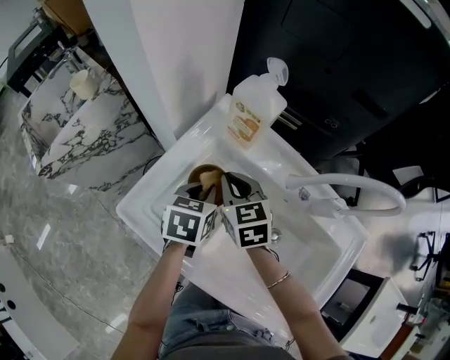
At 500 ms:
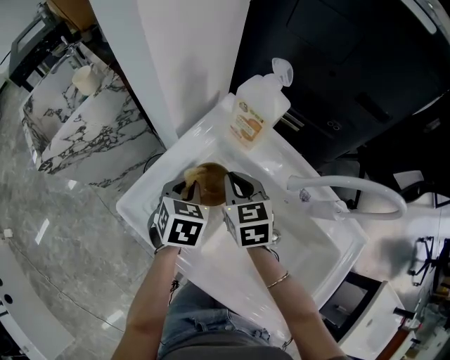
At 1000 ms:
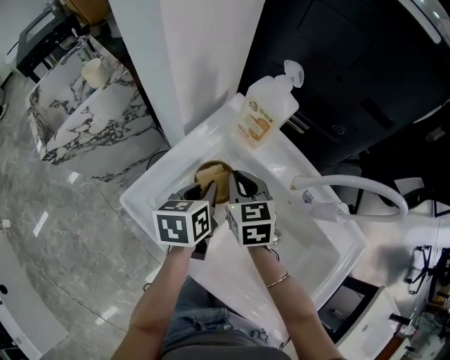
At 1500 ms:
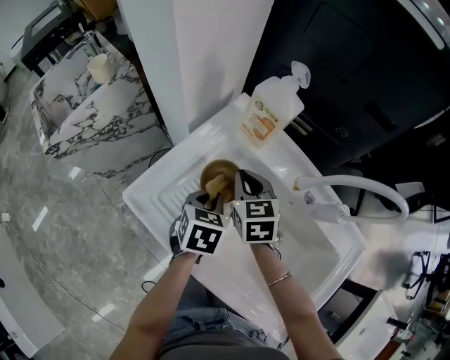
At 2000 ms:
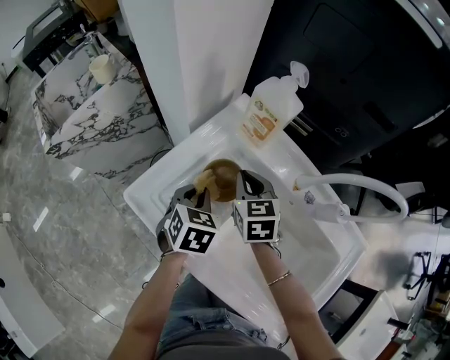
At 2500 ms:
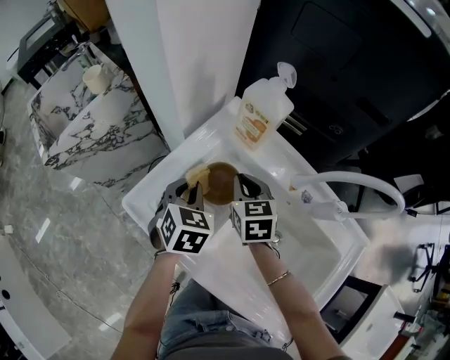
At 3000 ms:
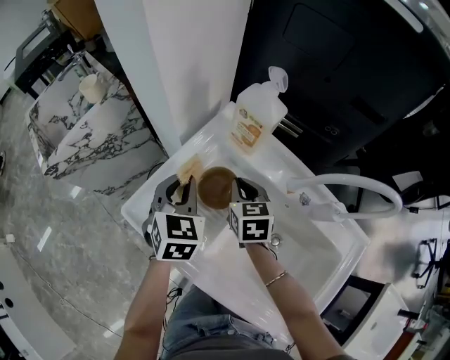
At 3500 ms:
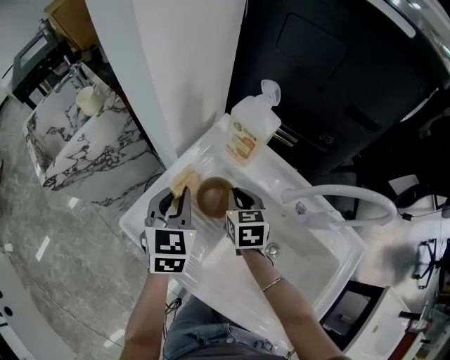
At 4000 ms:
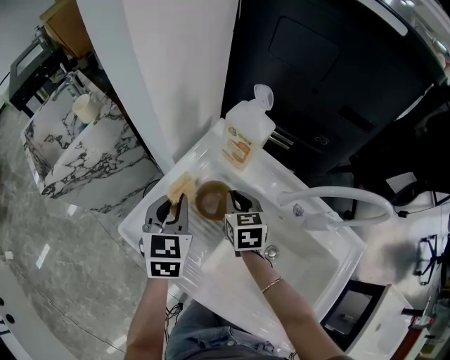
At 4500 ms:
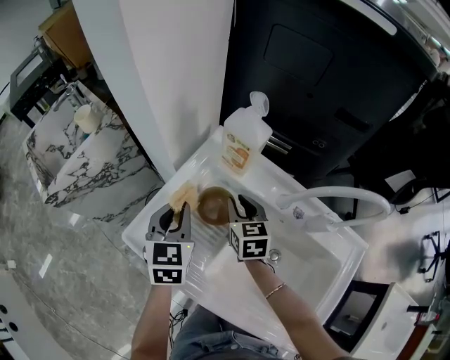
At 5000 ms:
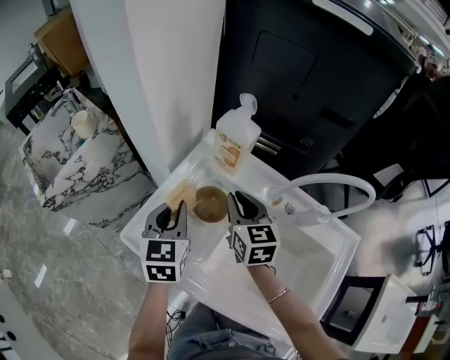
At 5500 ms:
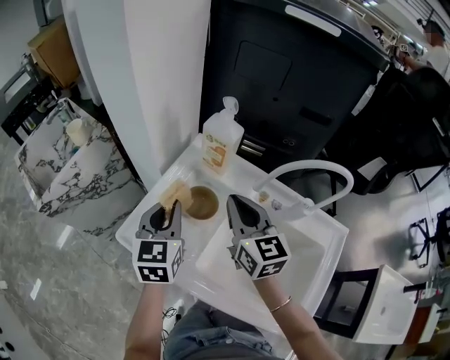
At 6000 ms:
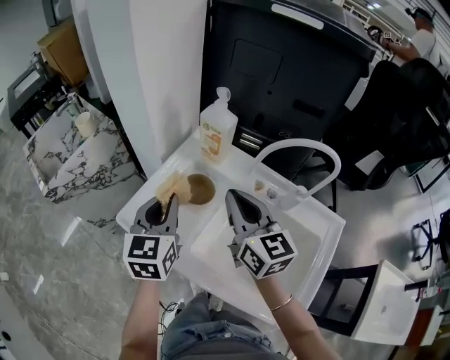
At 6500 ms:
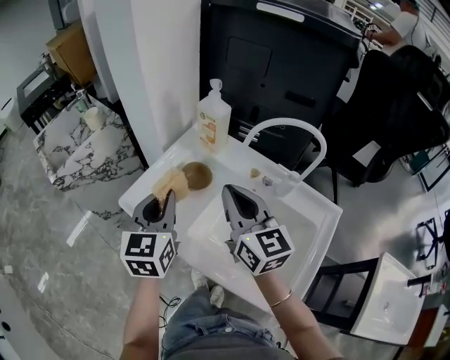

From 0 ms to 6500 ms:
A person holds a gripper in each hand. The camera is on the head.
From 0 ms to 2000 ms: The left gripper moves left and right over roughly 5 cm, changing direction 2 times.
From 2000 ms to 4500 ms: The left gripper heads upward, covering roughly 10 cm, and turns by approximately 20 degrees.
From 4500 ms to 6500 ms: The left gripper shifts roughly 15 cm backward and upward. Meanwhile the right gripper moves upward and backward, some 25 cm, and tilts its fingers some 30 degrees upward.

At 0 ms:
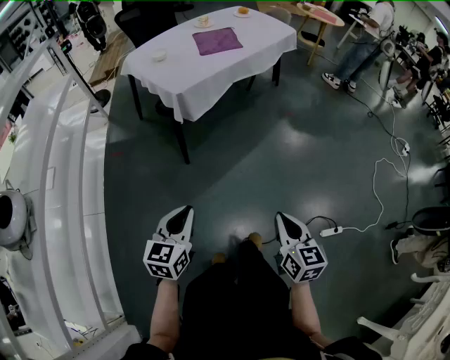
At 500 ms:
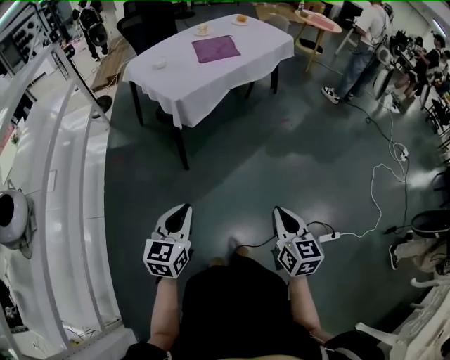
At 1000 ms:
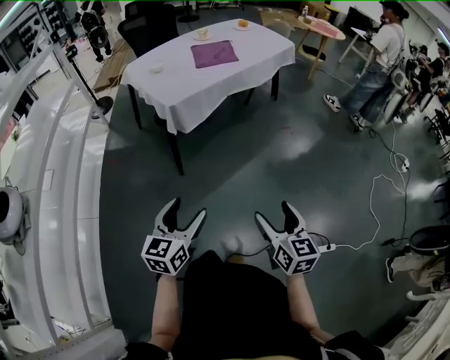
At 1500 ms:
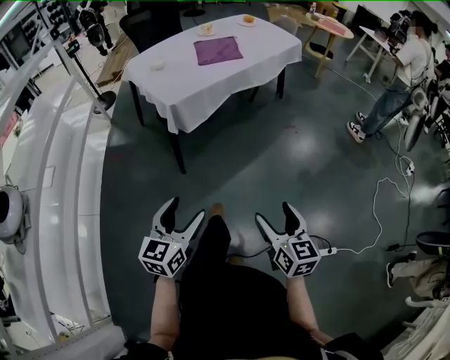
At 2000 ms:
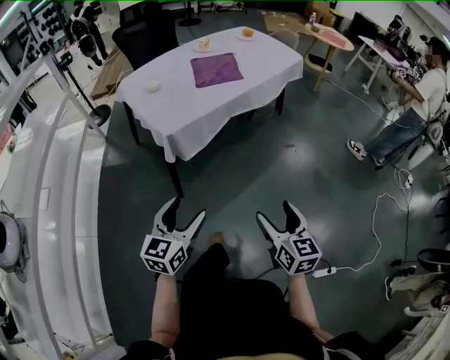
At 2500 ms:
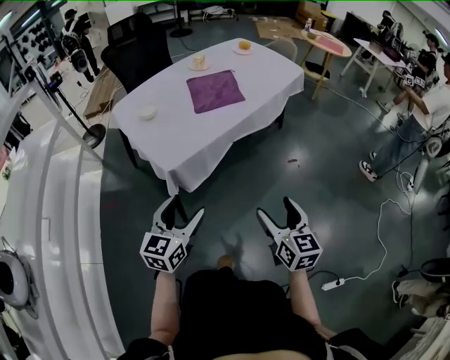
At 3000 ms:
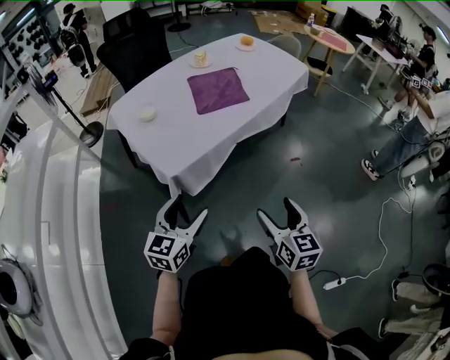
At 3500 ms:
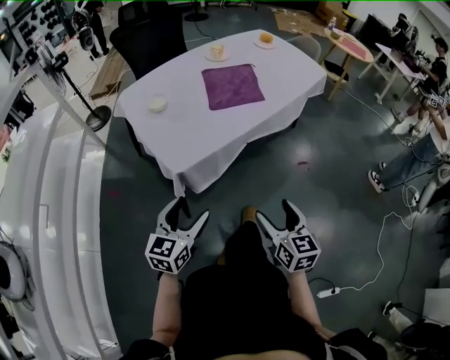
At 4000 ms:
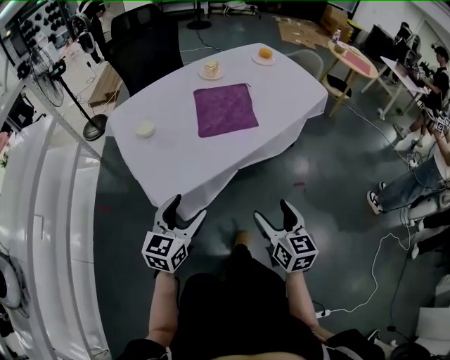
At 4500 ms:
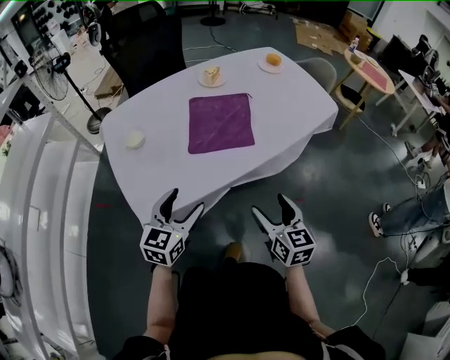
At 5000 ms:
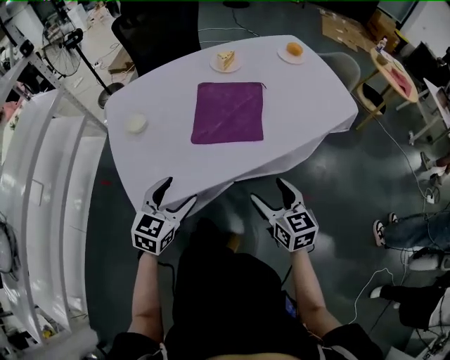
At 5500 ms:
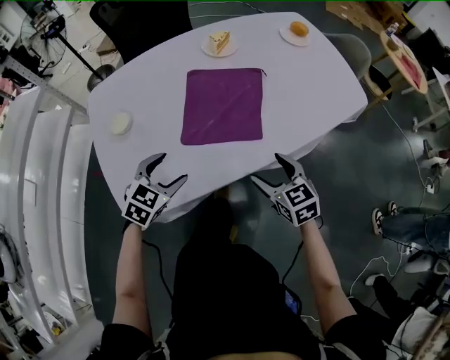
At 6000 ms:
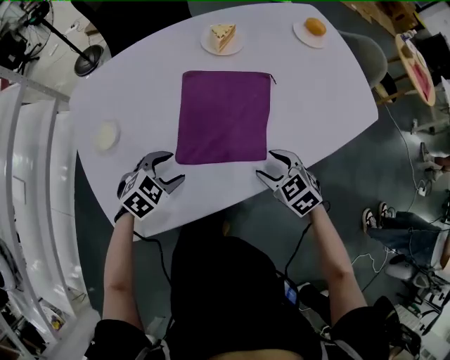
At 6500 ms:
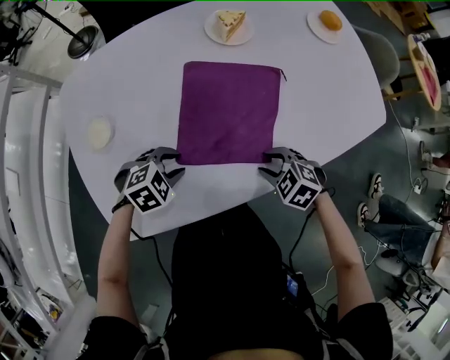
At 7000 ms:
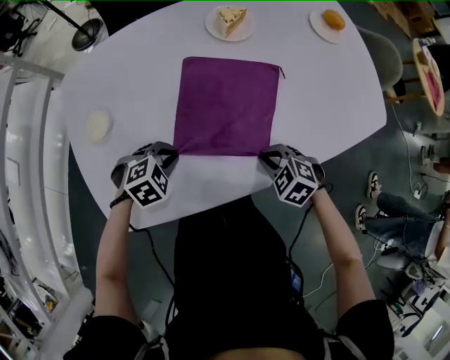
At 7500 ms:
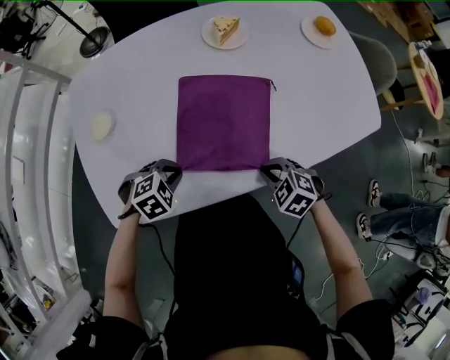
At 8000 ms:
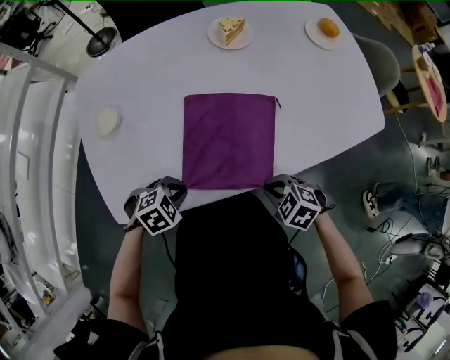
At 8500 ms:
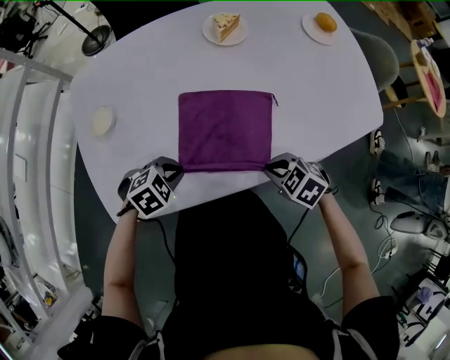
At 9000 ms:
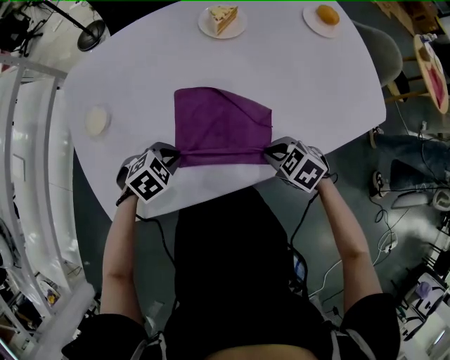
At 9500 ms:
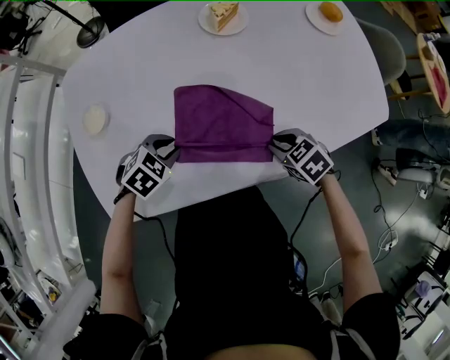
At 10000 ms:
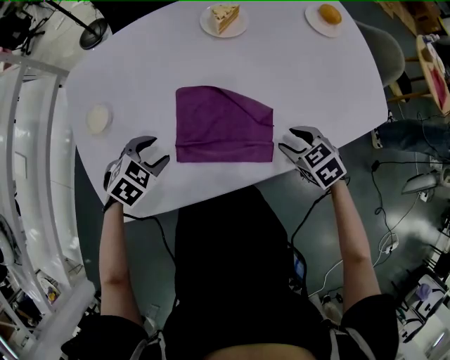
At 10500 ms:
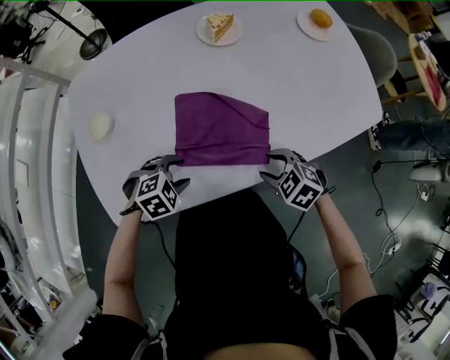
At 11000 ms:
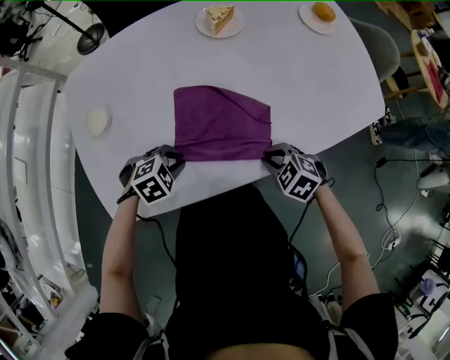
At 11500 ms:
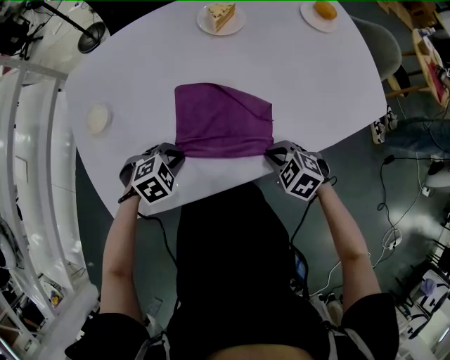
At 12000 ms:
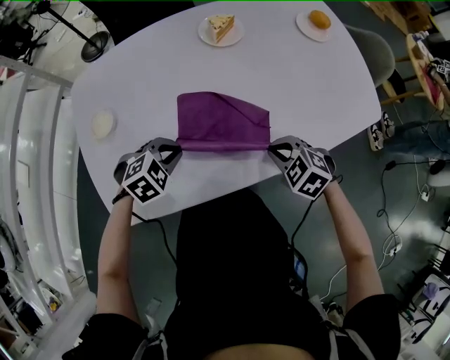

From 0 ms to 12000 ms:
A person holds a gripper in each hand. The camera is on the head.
From 0 ms to 2000 ms: The two grippers go some 25 cm forward. The left gripper opens, while the right gripper opens up.
From 2000 ms to 4000 ms: Both grippers move forward, about 35 cm.
From 4000 ms to 6000 ms: The right gripper goes about 40 cm forward, and points its fingers approximately 30 degrees further downward, while the left gripper shifts approximately 40 cm forward and downward, and tilts its fingers approximately 40 degrees downward.
From 6000 ms to 8000 ms: The left gripper moves roughly 10 cm, and closes. The right gripper ends up roughly 10 cm from where it was, turns by about 30 degrees, and closes.
From 8000 ms to 10000 ms: The right gripper moves about 15 cm, rotates approximately 20 degrees, and opens. Meanwhile the left gripper changes place by about 15 cm, and opens.
From 10000 ms to 12000 ms: The right gripper ends up roughly 5 cm from where it was, rotates roughly 20 degrees, and closes its fingers. Meanwhile the left gripper closes.

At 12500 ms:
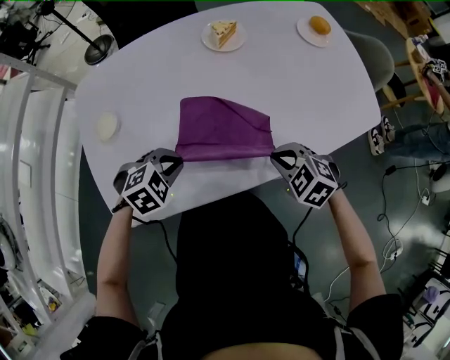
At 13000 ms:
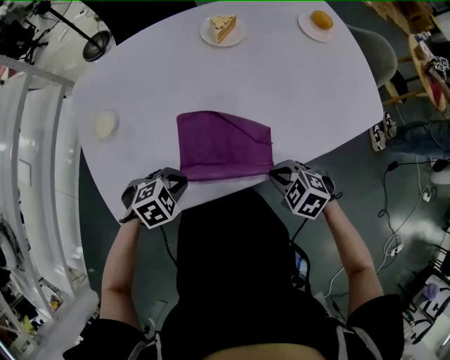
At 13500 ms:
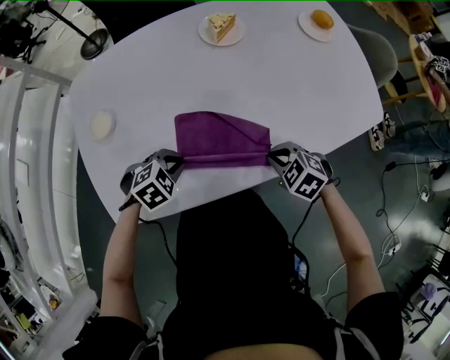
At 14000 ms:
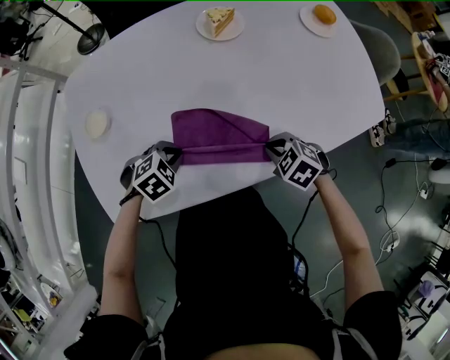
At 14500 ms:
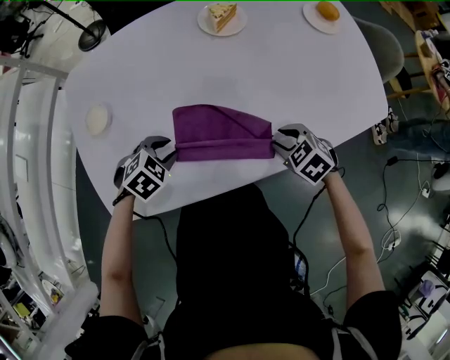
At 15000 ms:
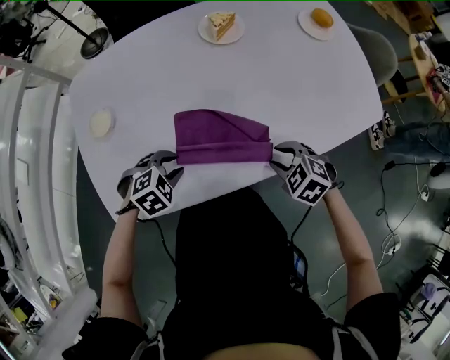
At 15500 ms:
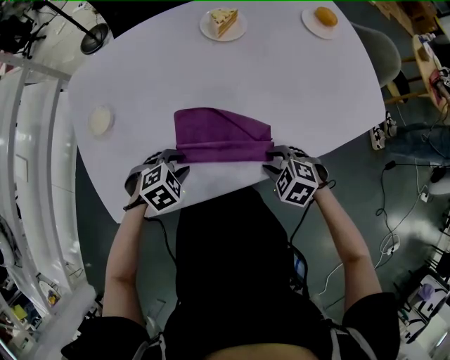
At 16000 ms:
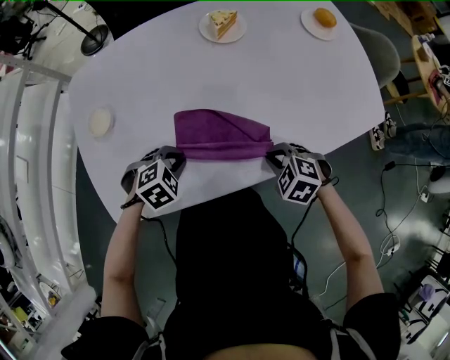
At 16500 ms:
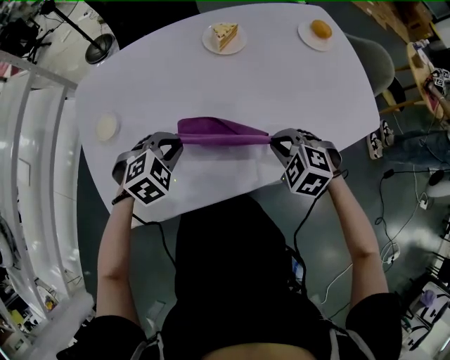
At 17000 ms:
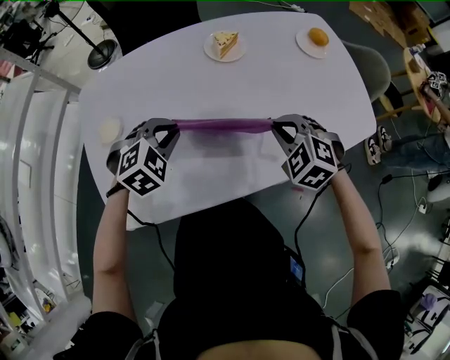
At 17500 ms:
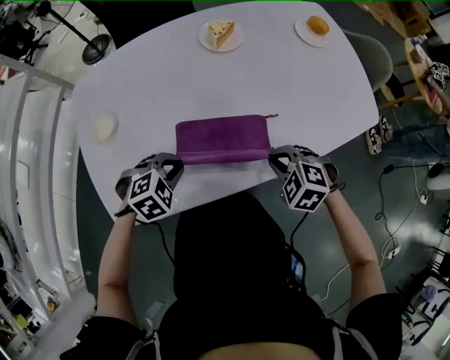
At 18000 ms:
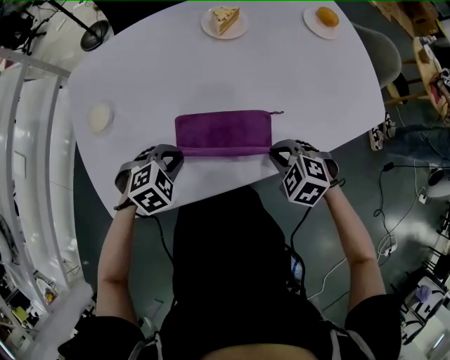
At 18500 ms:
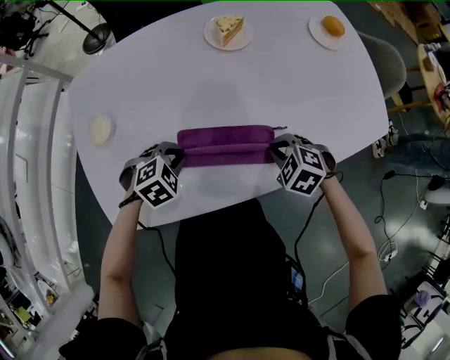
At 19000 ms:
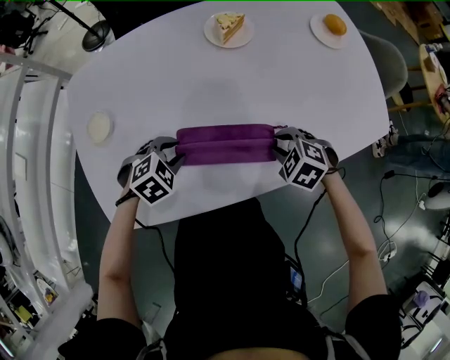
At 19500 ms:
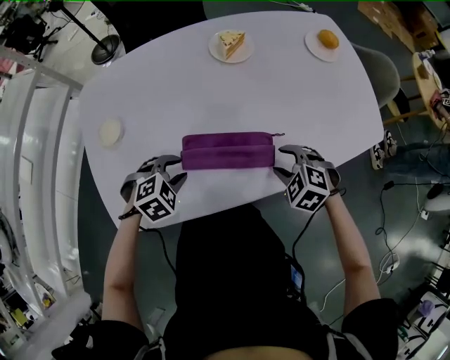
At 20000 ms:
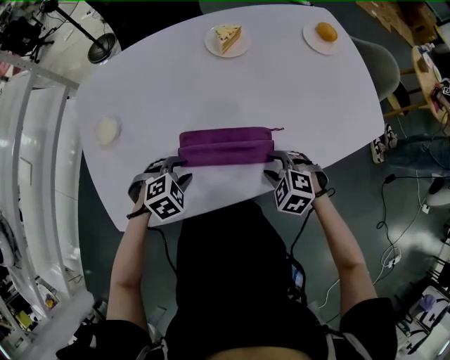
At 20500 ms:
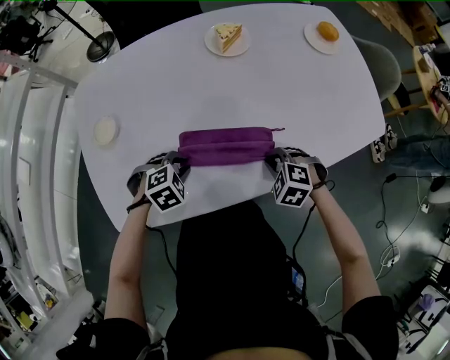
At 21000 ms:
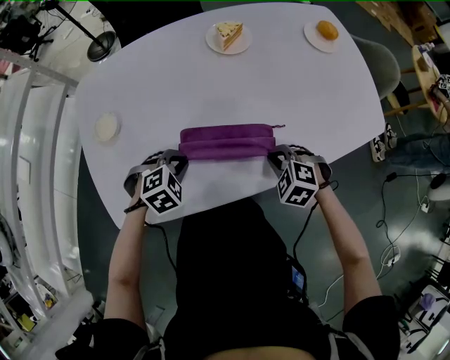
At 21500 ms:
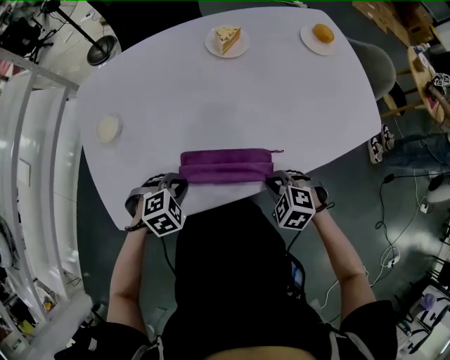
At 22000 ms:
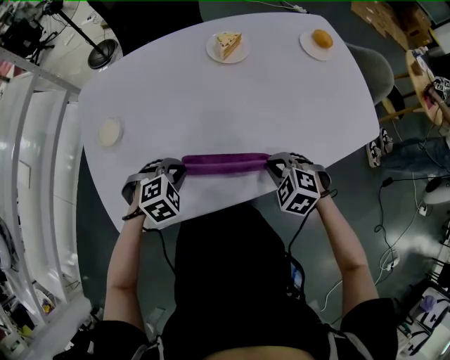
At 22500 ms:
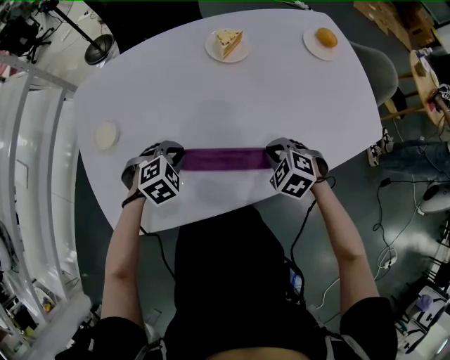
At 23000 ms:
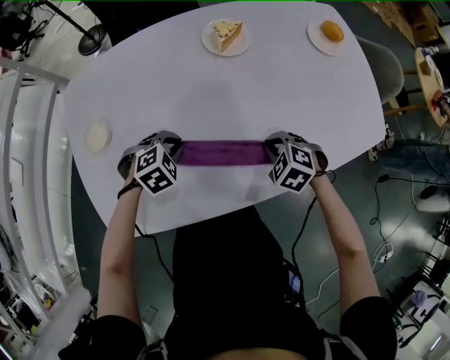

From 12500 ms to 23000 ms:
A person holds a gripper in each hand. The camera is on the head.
From 12500 ms to 14500 ms: The two grippers go roughly 5 cm downward. The right gripper opens.
From 14500 ms to 16500 ms: Both grippers move upward, approximately 10 cm. The right gripper swivels about 20 degrees.
From 16500 ms to 19000 ms: The two grippers go some 10 cm downward.
From 19000 ms to 21000 ms: The right gripper shifts by about 5 cm.
From 21000 ms to 23000 ms: Both grippers travel together forward, some 10 cm.
